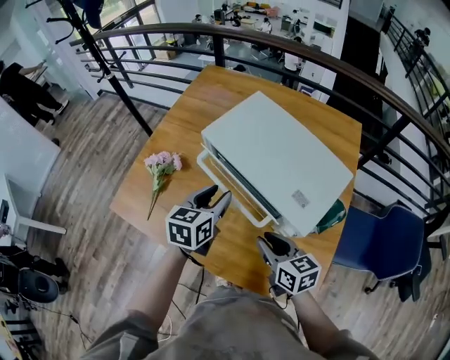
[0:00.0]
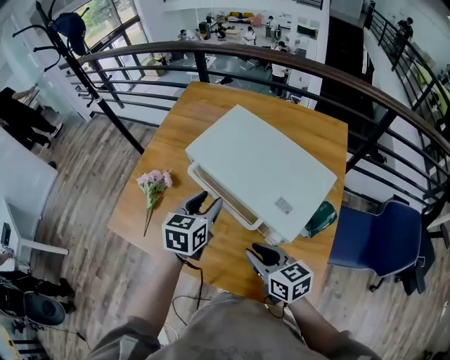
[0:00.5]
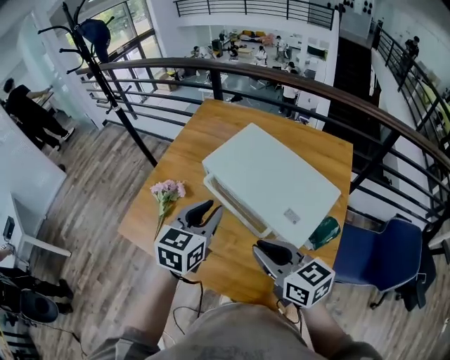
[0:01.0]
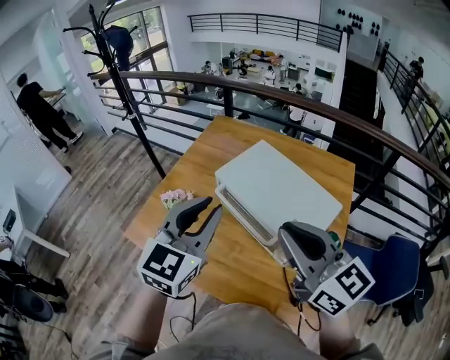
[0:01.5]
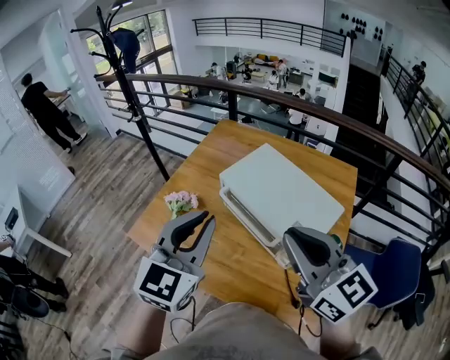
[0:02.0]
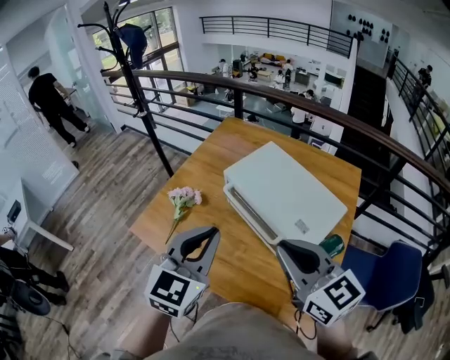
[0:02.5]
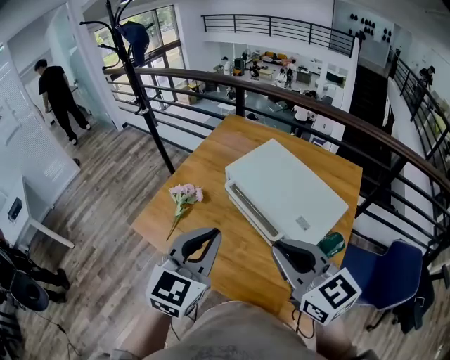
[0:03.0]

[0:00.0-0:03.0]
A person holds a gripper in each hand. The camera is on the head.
0:00.0 to 0:01.5: Both grippers travel together upward, roughly 30 cm. The left gripper swivels some 30 degrees, and closes up. Meanwhile the right gripper changes its angle by some 40 degrees.
0:01.5 to 0:03.0: The left gripper goes approximately 5 cm backward, while the right gripper shifts by about 5 cm.

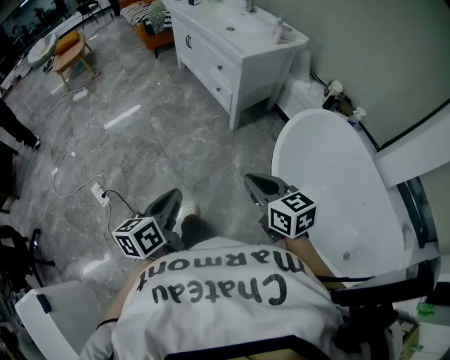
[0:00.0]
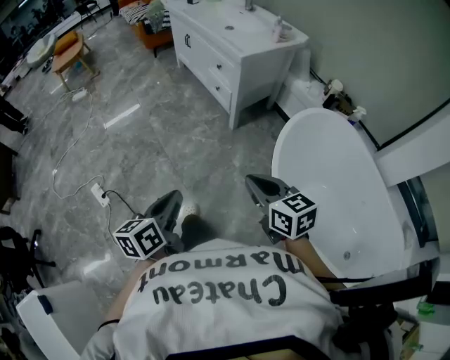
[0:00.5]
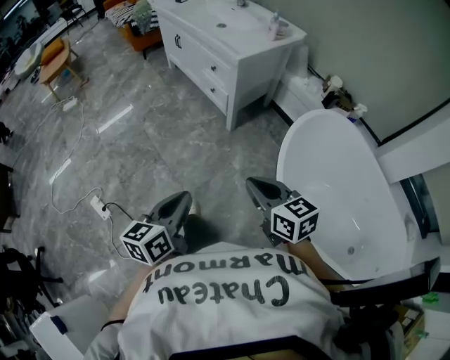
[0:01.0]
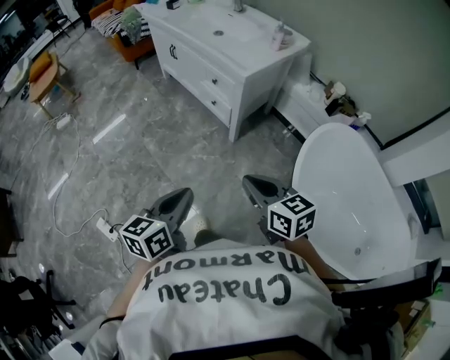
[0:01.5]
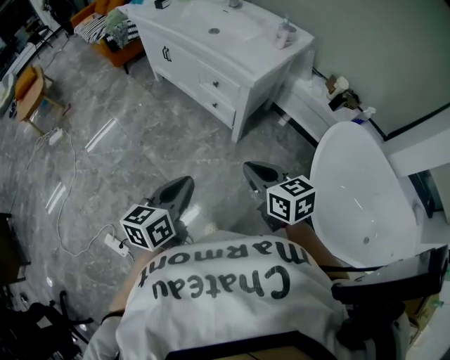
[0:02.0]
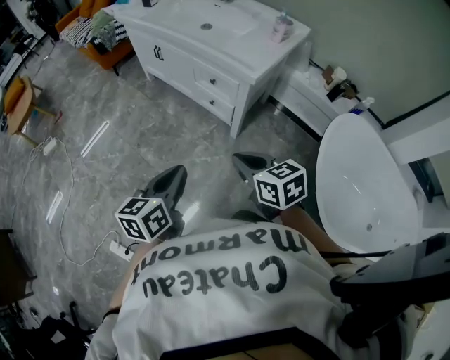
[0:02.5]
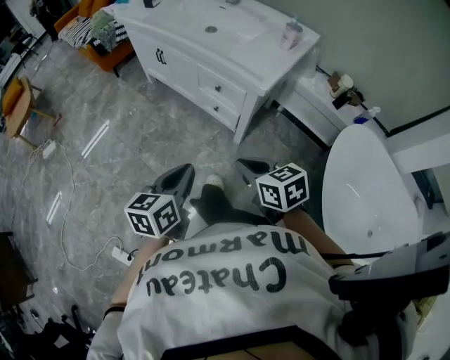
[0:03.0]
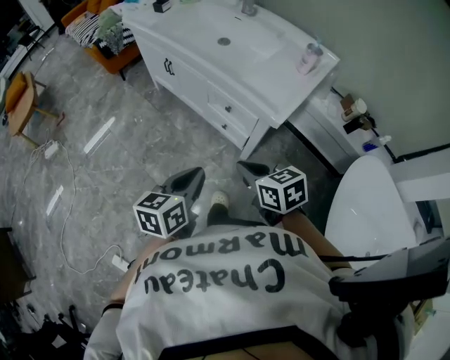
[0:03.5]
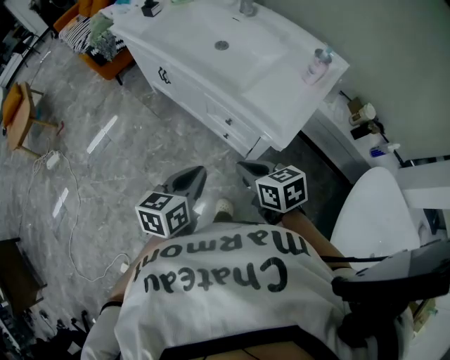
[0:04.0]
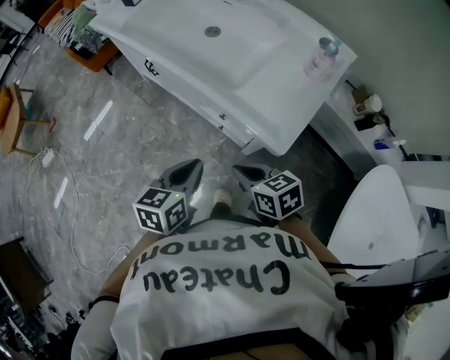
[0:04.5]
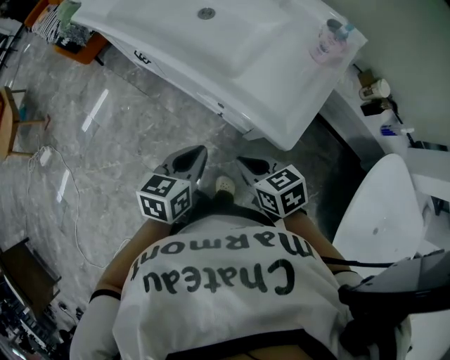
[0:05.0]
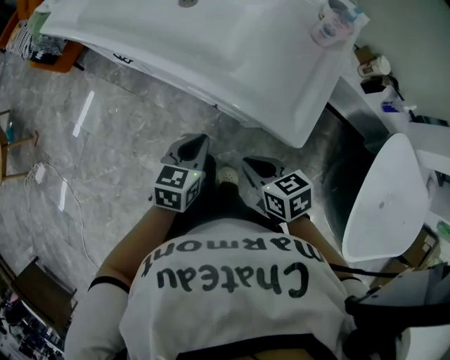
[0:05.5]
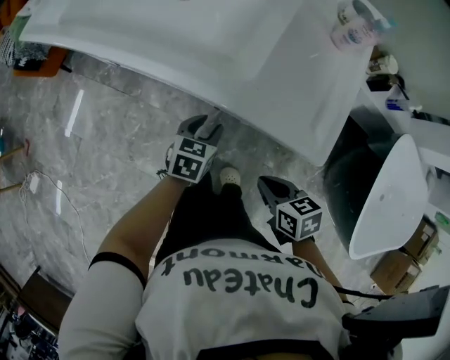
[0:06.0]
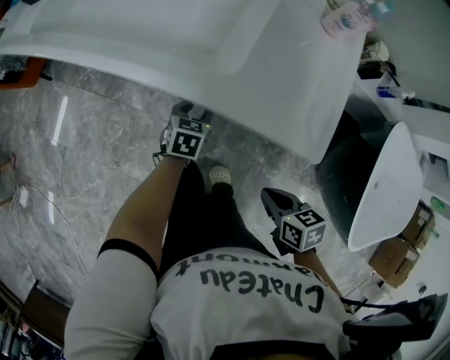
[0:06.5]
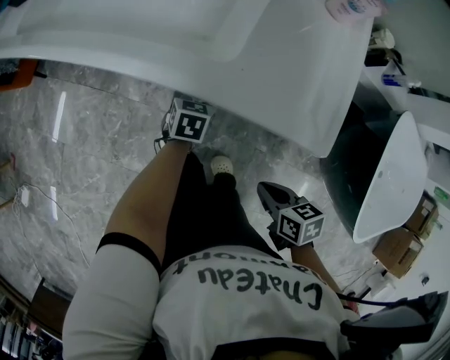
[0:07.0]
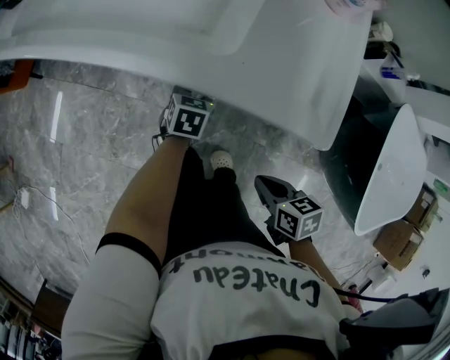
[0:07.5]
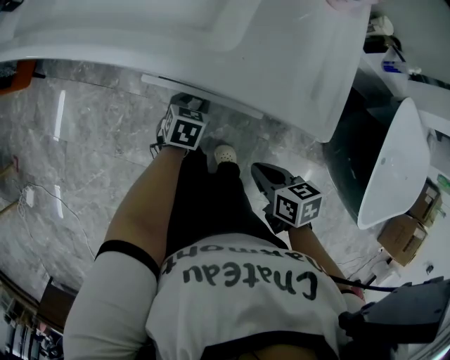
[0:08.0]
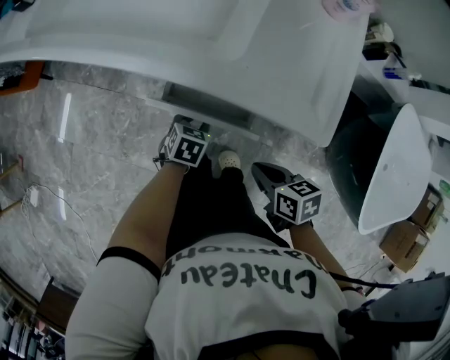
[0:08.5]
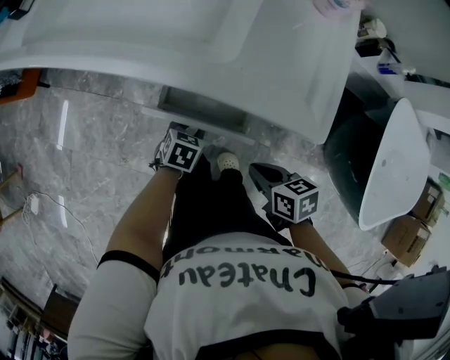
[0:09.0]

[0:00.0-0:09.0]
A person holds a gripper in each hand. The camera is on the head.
0:00.0 to 0:02.0: Both grippers move forward, about 30 cm. The left gripper turns by about 20 degrees.
0:02.0 to 0:04.5: The two grippers go some 35 cm forward.
0:04.5 to 0:07.0: The left gripper shifts roughly 35 cm downward and forward, turns by about 30 degrees, and opens up; the right gripper moves downward and backward, roughly 15 cm, and changes its angle by about 40 degrees.
0:07.0 to 0:09.0: The left gripper goes approximately 10 cm backward. The right gripper ends up about 5 cm from where it was.

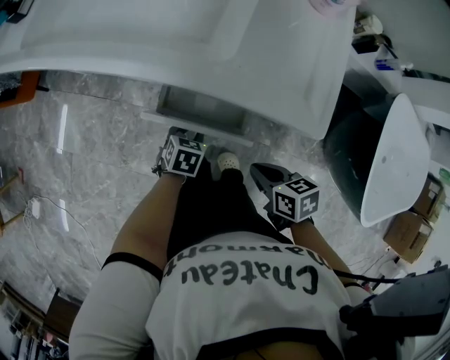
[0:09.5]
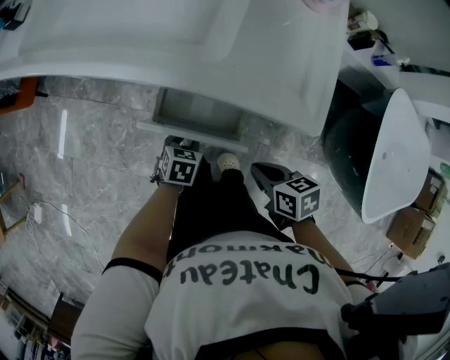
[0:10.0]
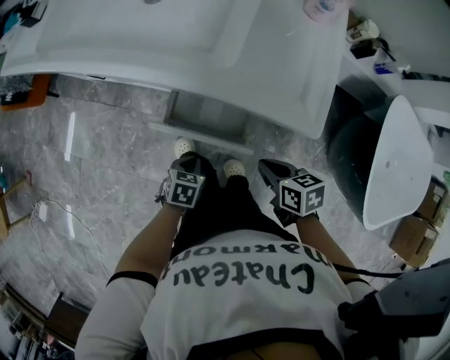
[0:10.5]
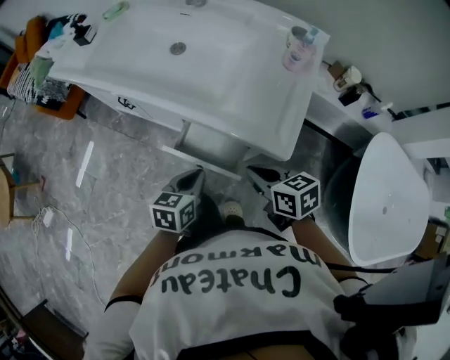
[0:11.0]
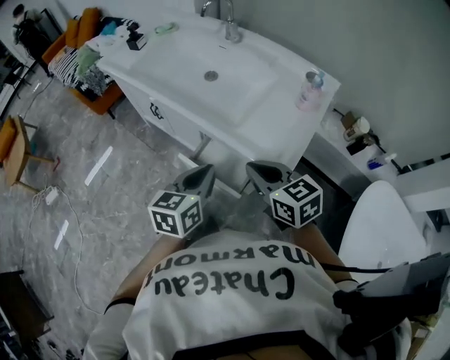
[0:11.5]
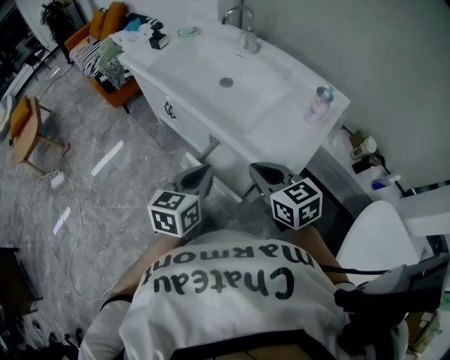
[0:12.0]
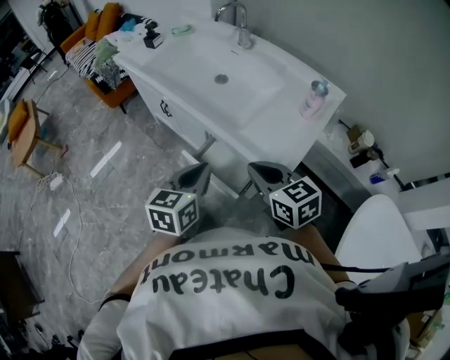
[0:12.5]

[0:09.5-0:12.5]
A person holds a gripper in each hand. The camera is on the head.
0:09.5 to 0:11.0: The right gripper heads upward and forward, covering about 15 cm, and rotates roughly 20 degrees; the left gripper goes some 20 cm upward, turns by approximately 30 degrees, and closes.
0:11.0 to 0:12.5: The two grippers go roughly 15 cm upward. The left gripper swivels approximately 30 degrees. Meanwhile the right gripper swivels about 30 degrees.

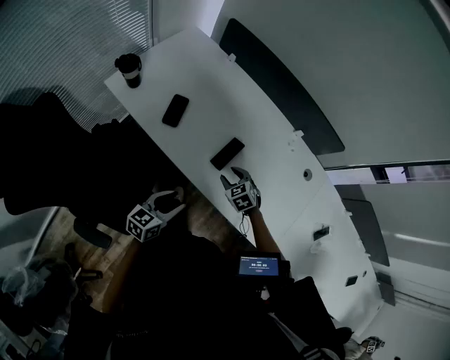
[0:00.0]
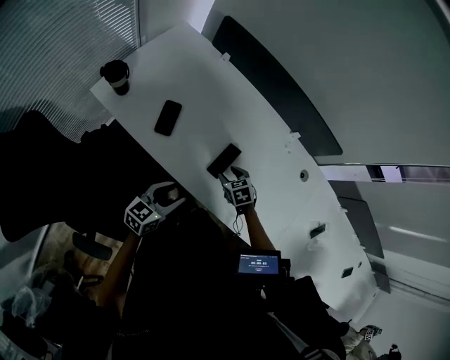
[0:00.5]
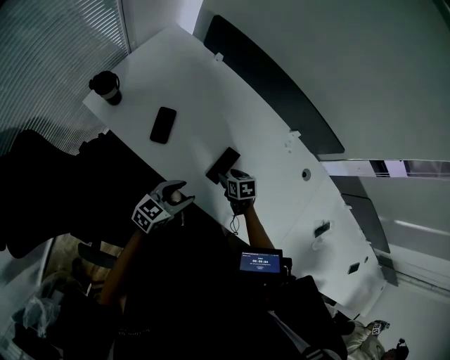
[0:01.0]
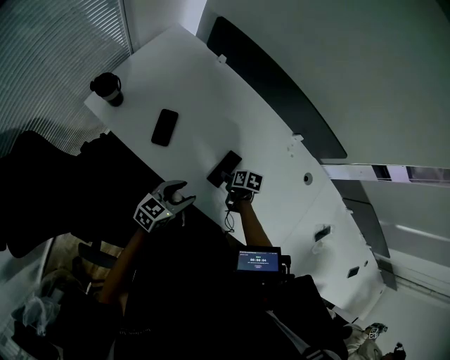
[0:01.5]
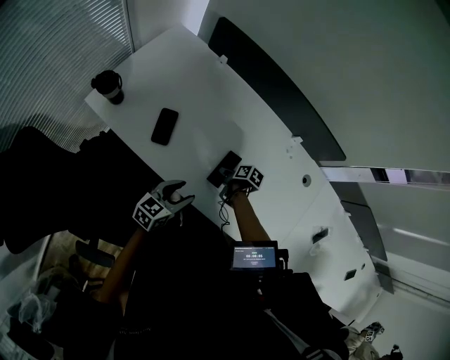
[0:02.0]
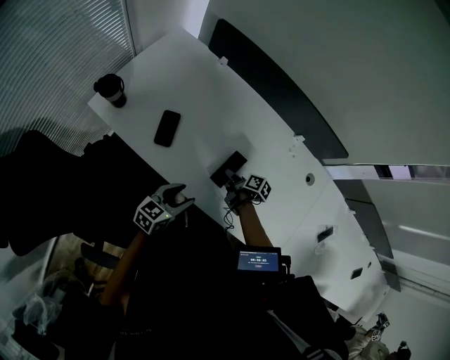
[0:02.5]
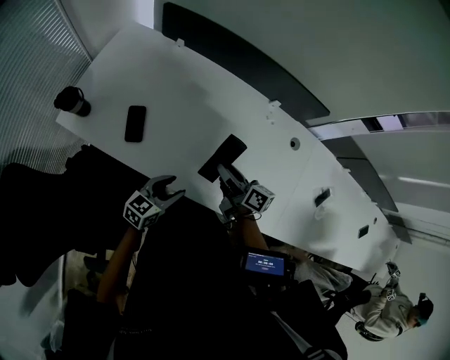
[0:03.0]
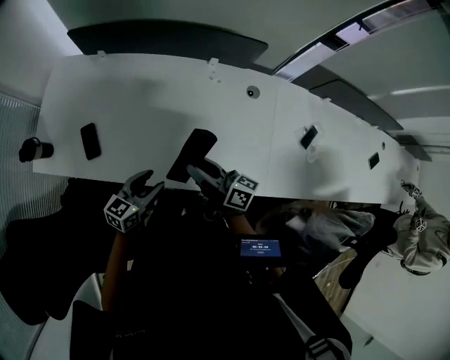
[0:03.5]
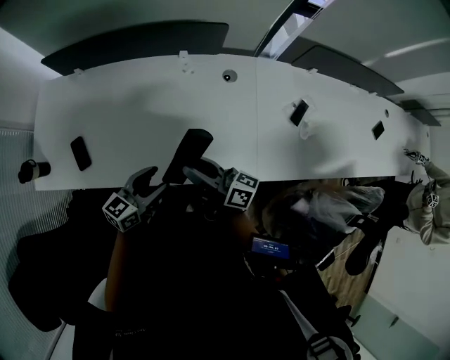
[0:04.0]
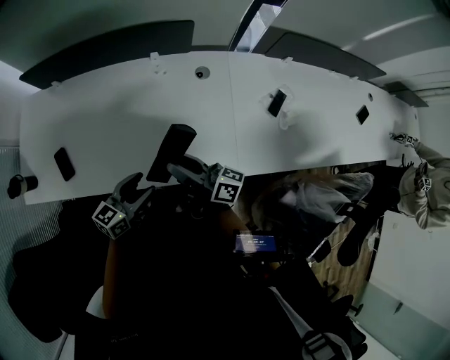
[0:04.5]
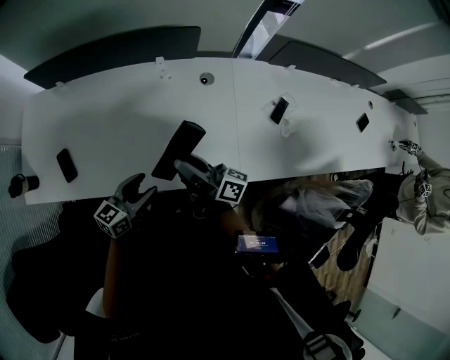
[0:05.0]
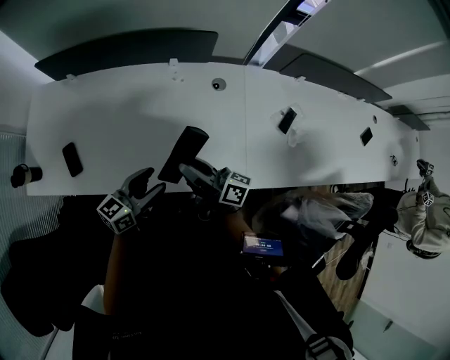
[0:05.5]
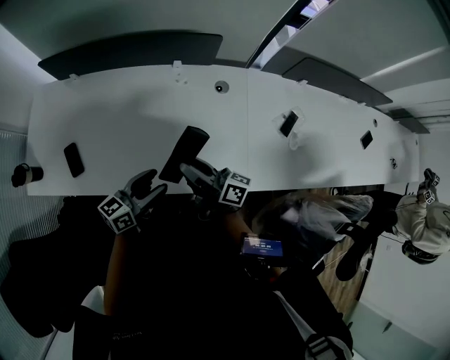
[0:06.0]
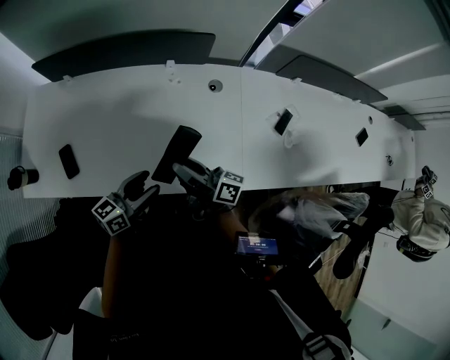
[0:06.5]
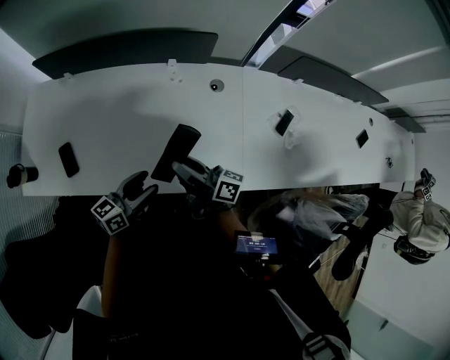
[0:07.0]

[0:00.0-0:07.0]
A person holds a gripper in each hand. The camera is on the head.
0:00.0 to 0:02.0: The right gripper goes roughly 15 cm downward and forward, and twists about 90 degrees clockwise, seen from behind, while the left gripper heads forward, covering about 15 cm.
0:02.0 to 0:03.5: The right gripper shifts some 30 cm upward, and tips its fingers upward by about 60 degrees, while the left gripper travels to the right by approximately 10 cm.
0:03.5 to 0:05.0: The grippers both shift to the right by approximately 15 cm.
0:05.0 to 0:07.0: The grippers stay close to where they were, moving slightly.

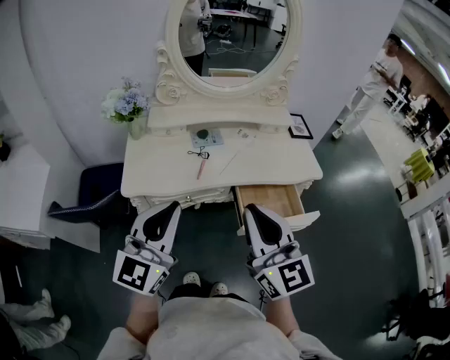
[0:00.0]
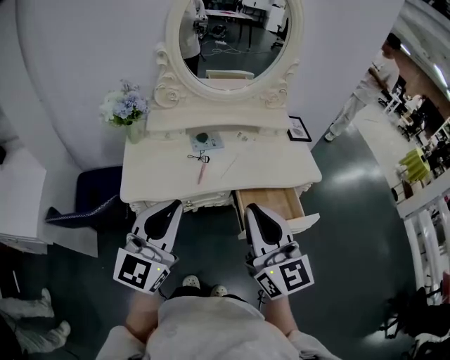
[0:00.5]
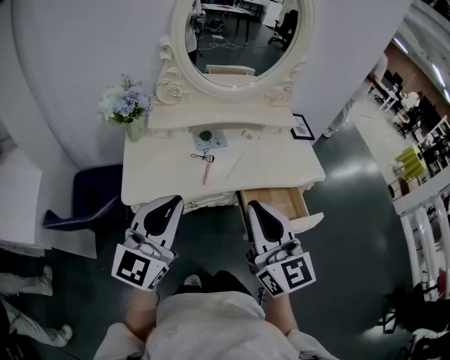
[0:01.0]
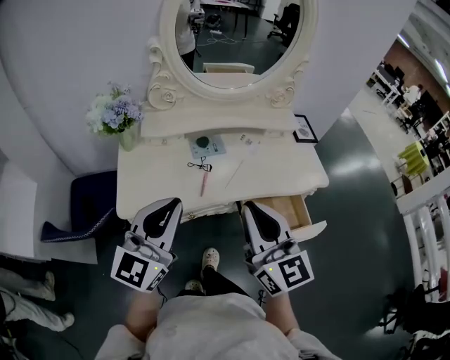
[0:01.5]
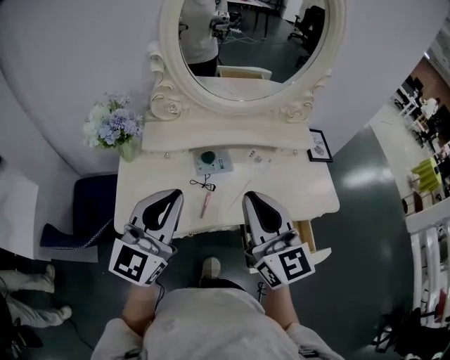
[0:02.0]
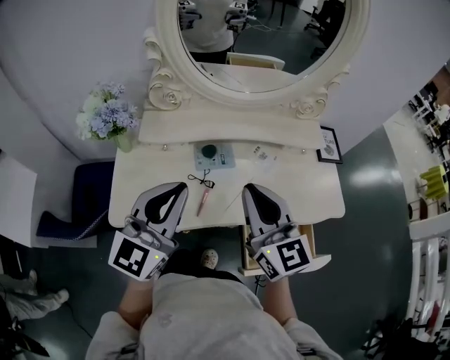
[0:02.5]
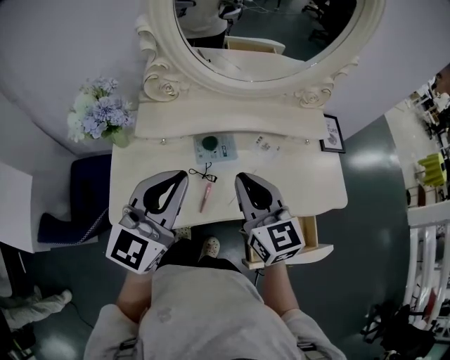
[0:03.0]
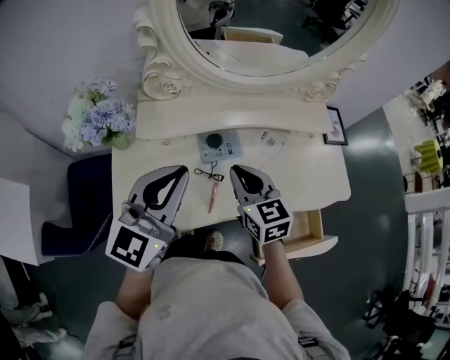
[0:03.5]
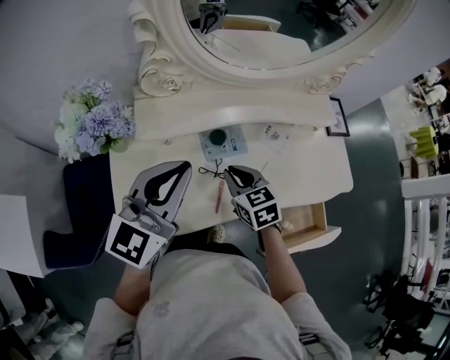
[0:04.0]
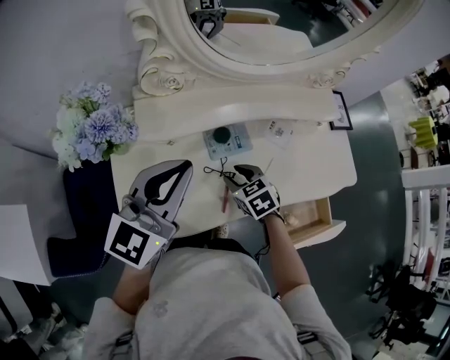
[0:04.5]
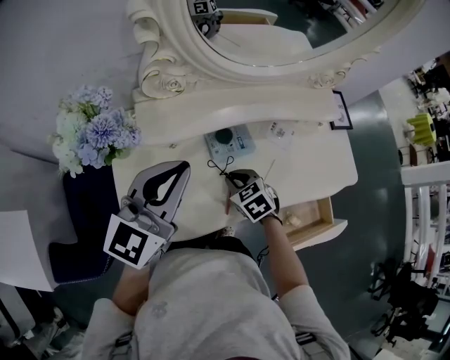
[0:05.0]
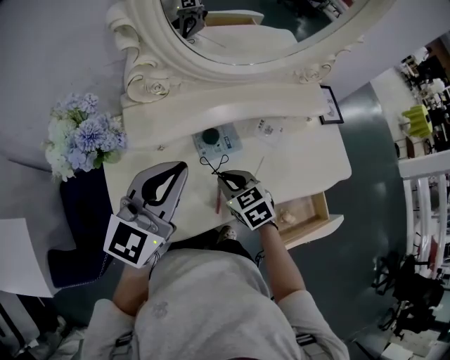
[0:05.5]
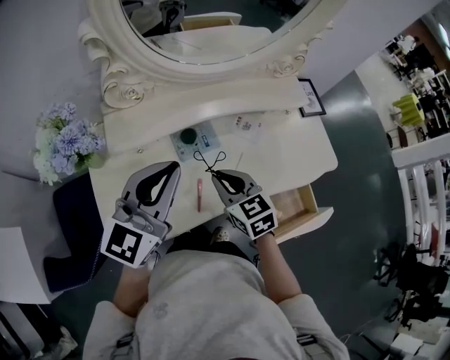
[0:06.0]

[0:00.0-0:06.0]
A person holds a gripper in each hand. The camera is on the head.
0:00.0 to 0:02.0: Both grippers travel together forward, approximately 20 cm.
0:02.0 to 0:04.0: The right gripper goes roughly 30 cm downward and forward, and angles its fingers downward, by roughly 40 degrees. The left gripper shifts roughly 15 cm forward and downward.
0:04.0 to 0:06.0: The right gripper travels downward and back again, about 10 cm each way, and opens, then closes again.
